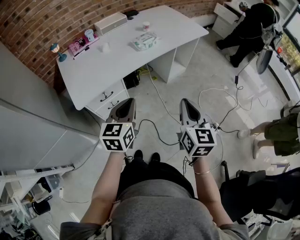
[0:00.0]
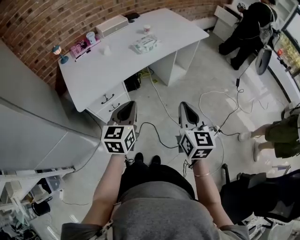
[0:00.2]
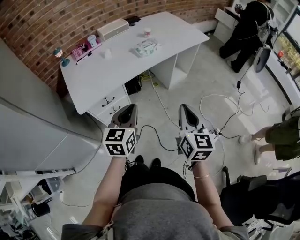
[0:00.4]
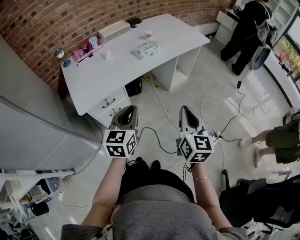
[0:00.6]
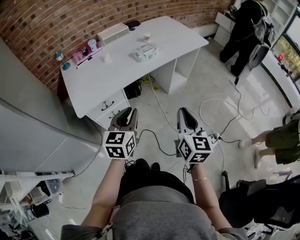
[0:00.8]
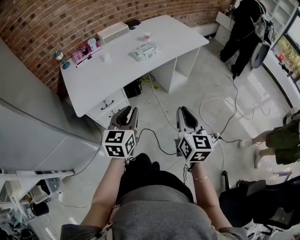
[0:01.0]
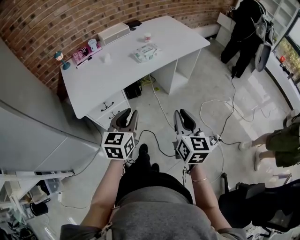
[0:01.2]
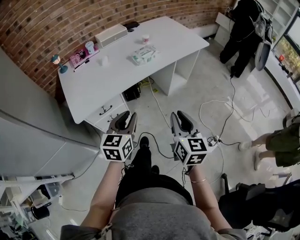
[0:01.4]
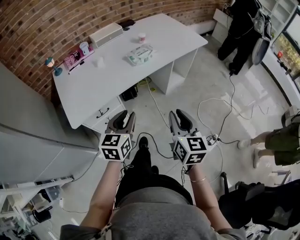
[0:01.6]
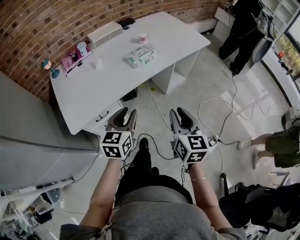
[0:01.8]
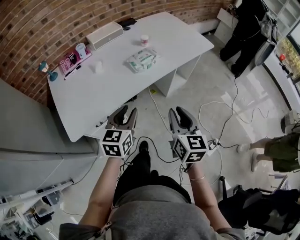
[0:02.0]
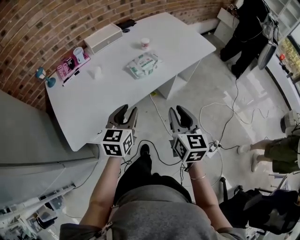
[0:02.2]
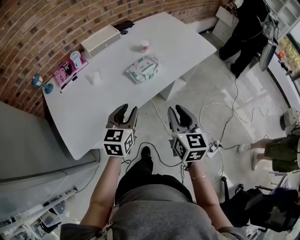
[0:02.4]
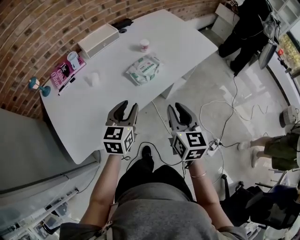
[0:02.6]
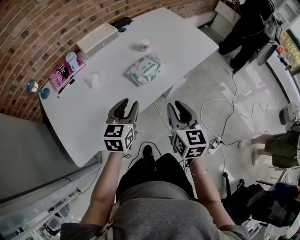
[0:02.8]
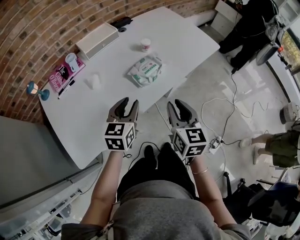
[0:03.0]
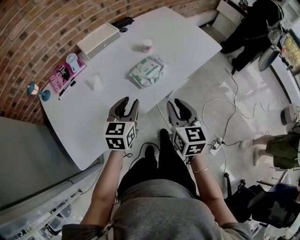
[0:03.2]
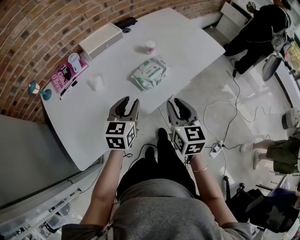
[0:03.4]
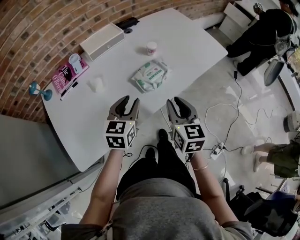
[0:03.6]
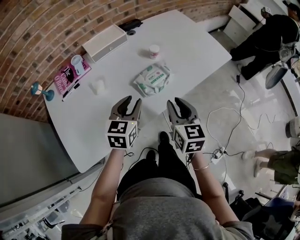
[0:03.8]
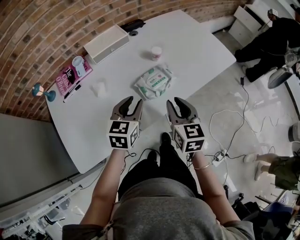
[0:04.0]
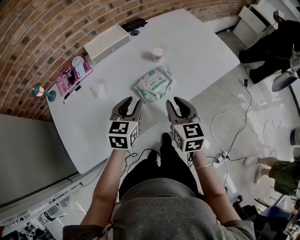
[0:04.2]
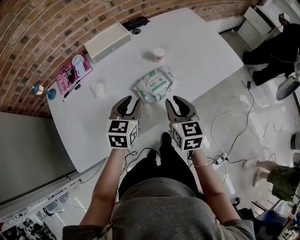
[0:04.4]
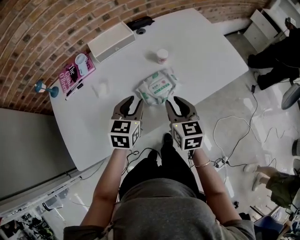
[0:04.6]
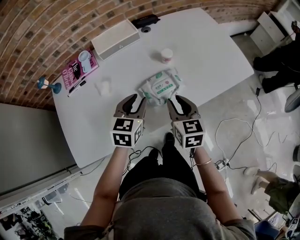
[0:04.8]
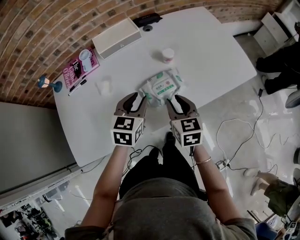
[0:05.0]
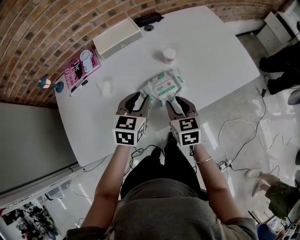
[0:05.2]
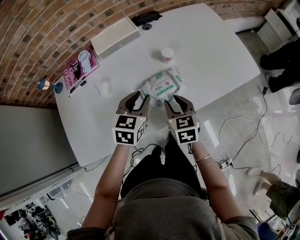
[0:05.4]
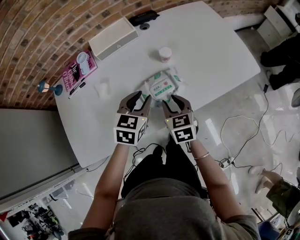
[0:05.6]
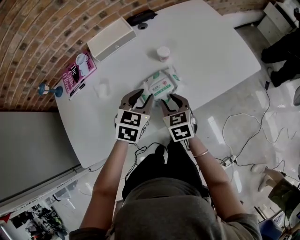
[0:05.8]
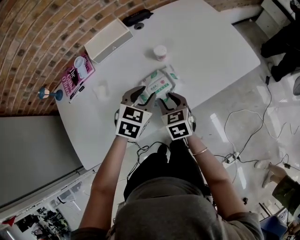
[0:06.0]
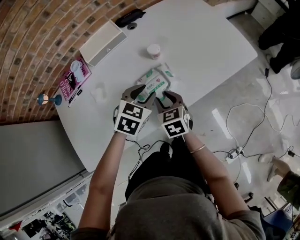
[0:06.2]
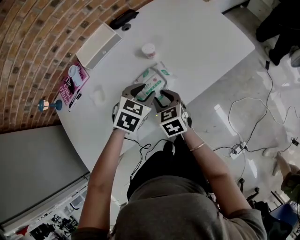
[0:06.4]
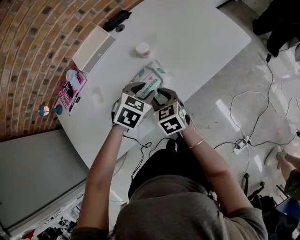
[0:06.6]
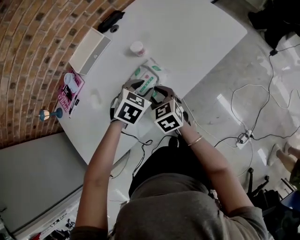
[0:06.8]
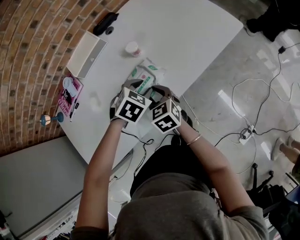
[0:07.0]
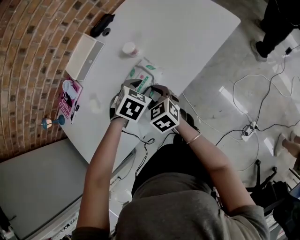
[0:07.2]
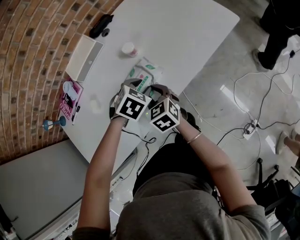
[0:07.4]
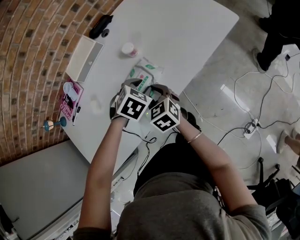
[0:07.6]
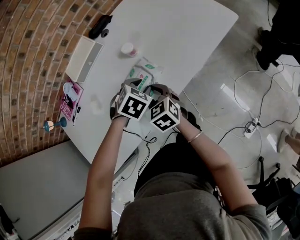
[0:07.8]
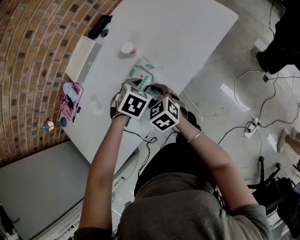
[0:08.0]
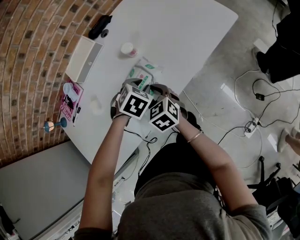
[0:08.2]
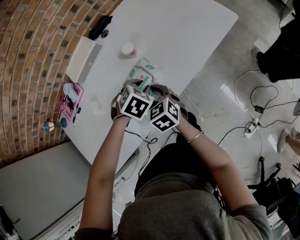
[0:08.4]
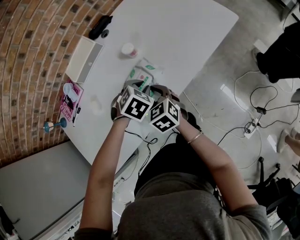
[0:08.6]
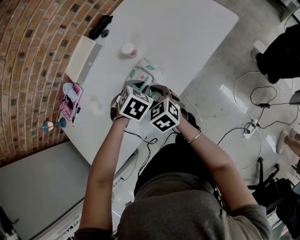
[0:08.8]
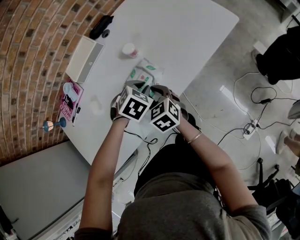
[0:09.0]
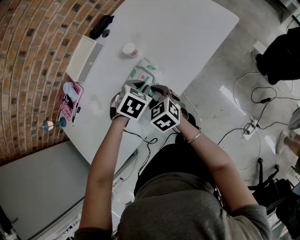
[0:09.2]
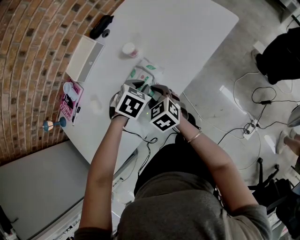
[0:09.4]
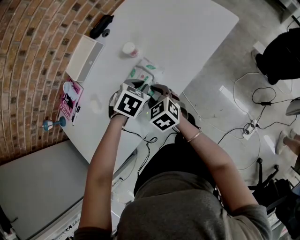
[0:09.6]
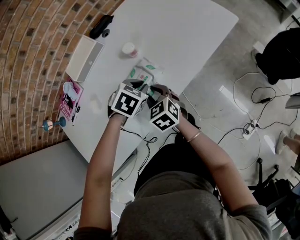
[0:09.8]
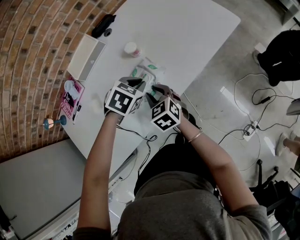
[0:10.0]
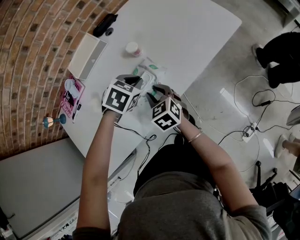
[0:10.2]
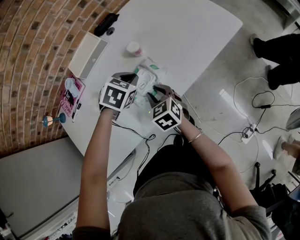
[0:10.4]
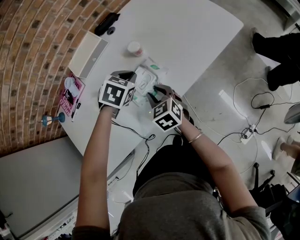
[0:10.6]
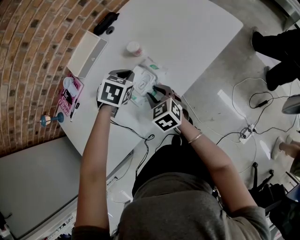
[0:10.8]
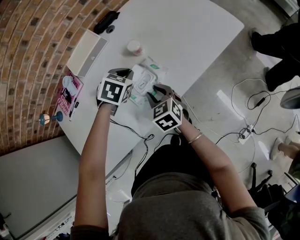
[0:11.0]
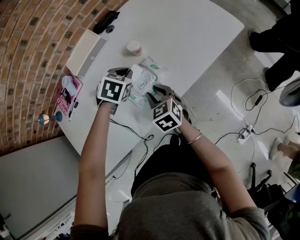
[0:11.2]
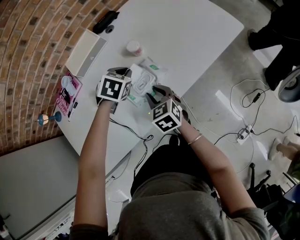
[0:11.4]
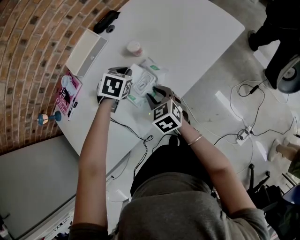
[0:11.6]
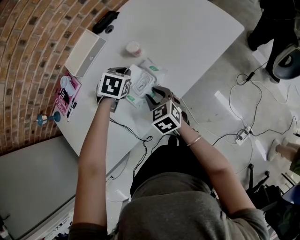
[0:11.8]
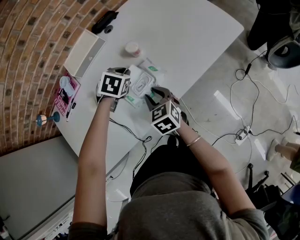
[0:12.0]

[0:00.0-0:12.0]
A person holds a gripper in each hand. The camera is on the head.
0:00.0 to 0:01.6: The grippers both shift forward by about 5 cm. The right gripper opens its fingers.
0:01.6 to 0:03.0: The grippers both shift forward by roughly 25 cm.
0:03.0 to 0:04.4: Both grippers move forward, some 10 cm.
0:04.4 to 0:06.0: The right gripper moves downward and forward, some 10 cm, while the left gripper heads to the right, covering approximately 5 cm, and rotates approximately 20 degrees.
0:06.0 to 0:07.6: The left gripper shifts some 10 cm downward and to the right, and changes its angle by roughly 30 degrees.
0:07.6 to 0:09.0: The left gripper closes its fingers.
0:09.0 to 0:10.4: The left gripper changes place by approximately 5 cm.
0:10.4 to 0:12.0: The left gripper heads forward, covering roughly 5 cm.

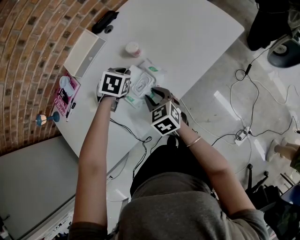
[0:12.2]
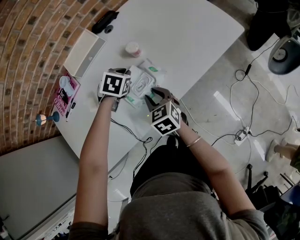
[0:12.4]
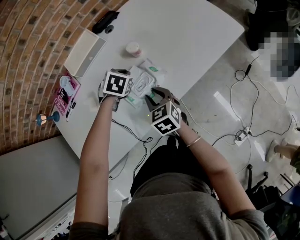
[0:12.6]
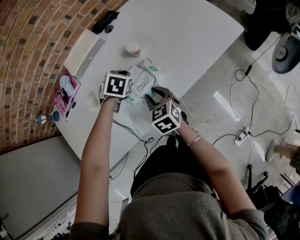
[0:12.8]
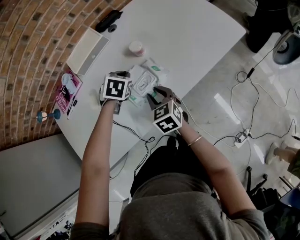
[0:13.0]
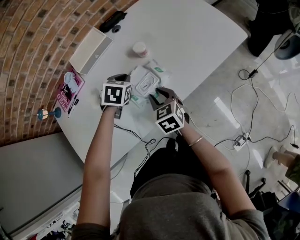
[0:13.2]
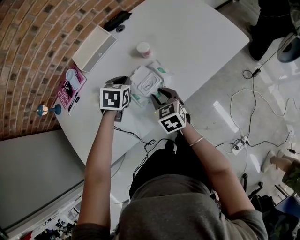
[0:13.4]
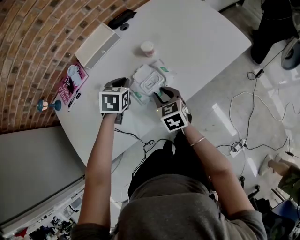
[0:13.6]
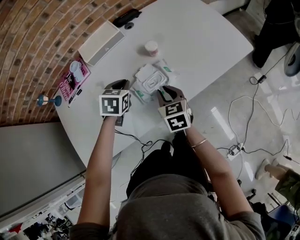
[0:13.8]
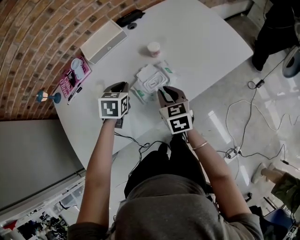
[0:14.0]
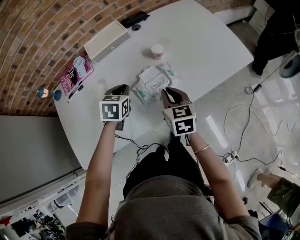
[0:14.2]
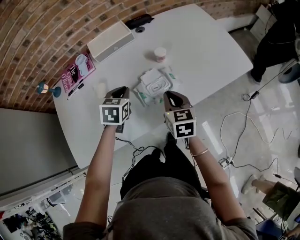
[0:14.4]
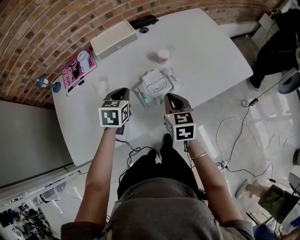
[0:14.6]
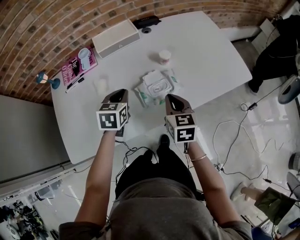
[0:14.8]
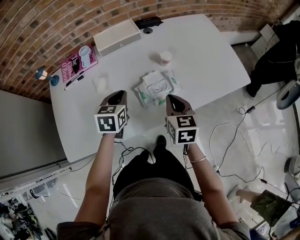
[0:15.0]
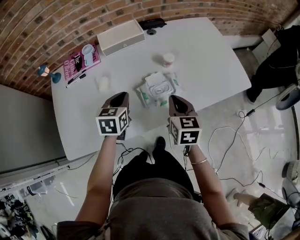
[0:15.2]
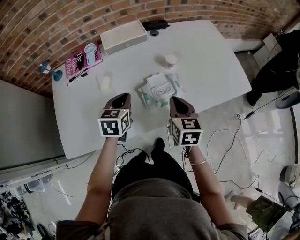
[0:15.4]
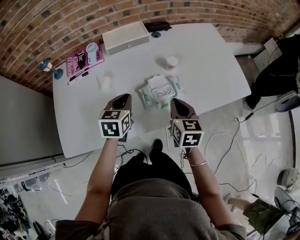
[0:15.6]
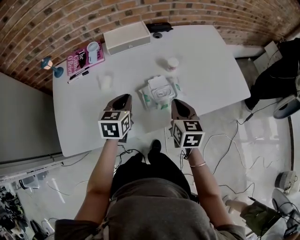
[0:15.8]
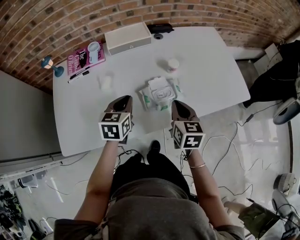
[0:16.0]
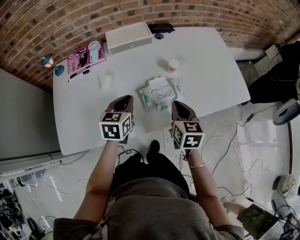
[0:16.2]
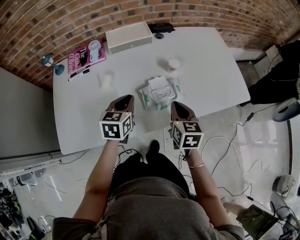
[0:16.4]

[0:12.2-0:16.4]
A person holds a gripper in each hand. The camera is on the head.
0:12.2 to 0:13.6: The left gripper heads to the left, covering approximately 5 cm.
0:13.6 to 0:15.0: The right gripper is displaced upward by some 10 cm, and closes its fingers. Meanwhile the left gripper travels backward and to the left by about 10 cm, and swivels some 30 degrees.
0:15.0 to 0:16.4: The grippers stay close to where they were, moving slightly.

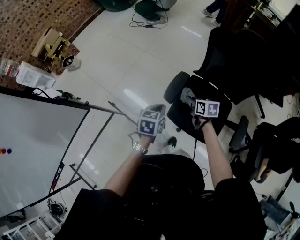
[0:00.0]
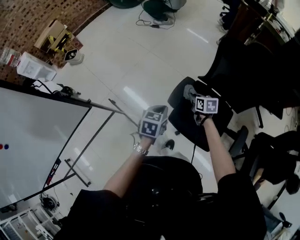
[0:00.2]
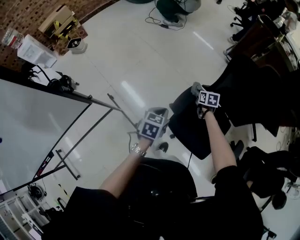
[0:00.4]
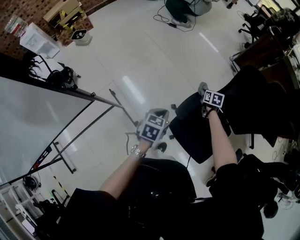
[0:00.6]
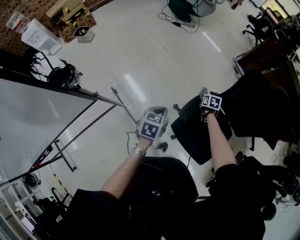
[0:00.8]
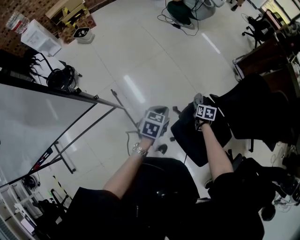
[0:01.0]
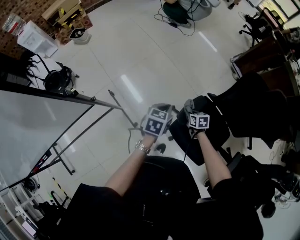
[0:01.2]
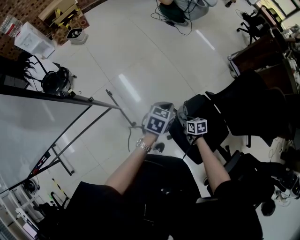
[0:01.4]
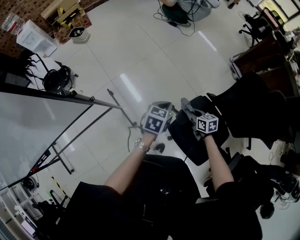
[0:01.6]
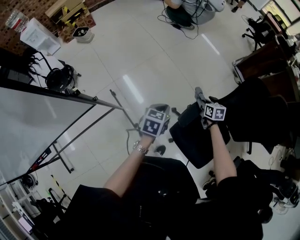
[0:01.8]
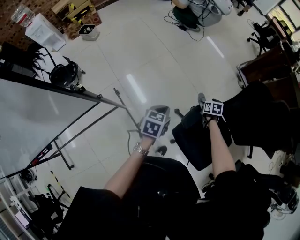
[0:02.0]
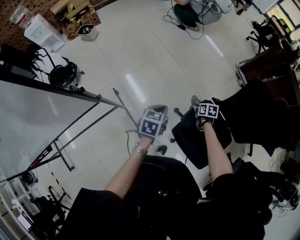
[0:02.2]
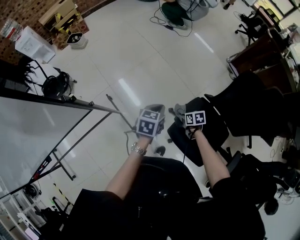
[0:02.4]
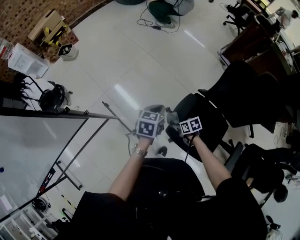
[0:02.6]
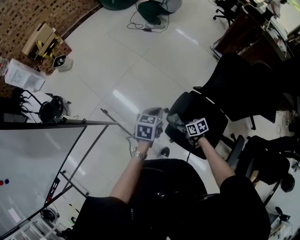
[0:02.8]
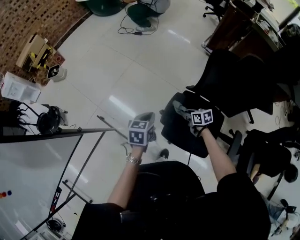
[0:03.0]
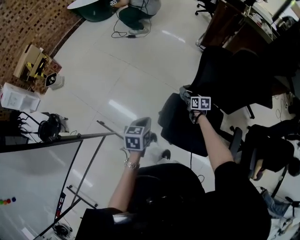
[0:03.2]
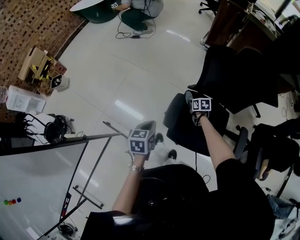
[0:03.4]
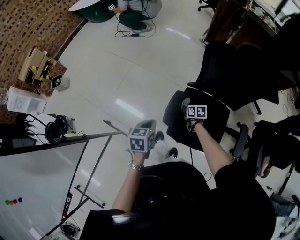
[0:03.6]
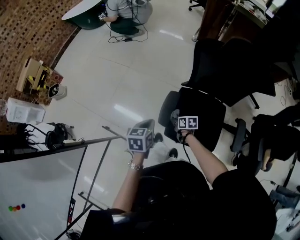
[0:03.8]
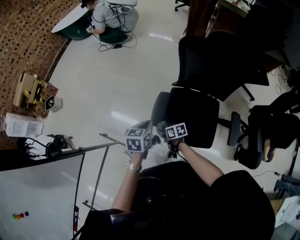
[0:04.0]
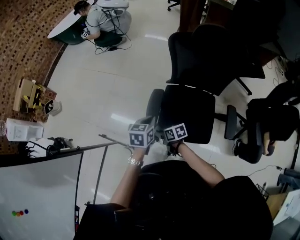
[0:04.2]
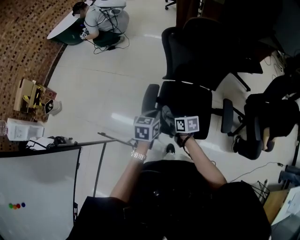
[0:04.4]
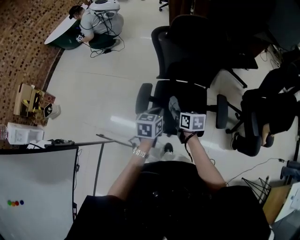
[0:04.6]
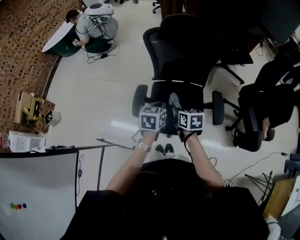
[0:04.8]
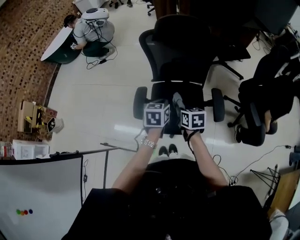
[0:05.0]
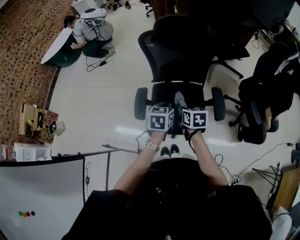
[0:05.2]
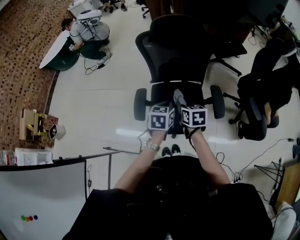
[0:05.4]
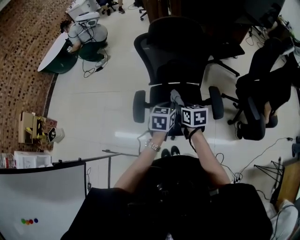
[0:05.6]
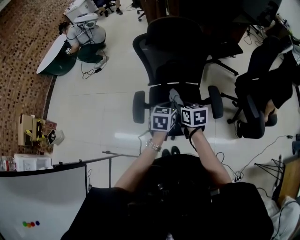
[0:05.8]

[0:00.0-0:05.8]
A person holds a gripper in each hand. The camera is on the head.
0:00.0 to 0:01.4: The right gripper is displaced downward and to the left by approximately 15 cm, goes forward and returns, about 20 cm each way, and swivels approximately 20 degrees. Meanwhile the left gripper goes roughly 15 cm forward and to the left.
0:01.4 to 0:02.8: The left gripper moves about 5 cm to the left and comes back. Meanwhile the right gripper goes forward and returns, approximately 15 cm each way.
0:02.8 to 0:04.4: The right gripper swings up and down, some 15 cm each way, with 2 reversals, and turns by roughly 40 degrees. The left gripper ends up roughly 20 cm from where it was.
0:04.4 to 0:05.8: The left gripper travels to the right by some 15 cm, while the right gripper moves to the right and upward, some 15 cm, and rotates some 30 degrees.

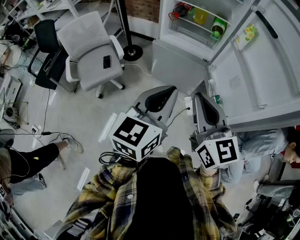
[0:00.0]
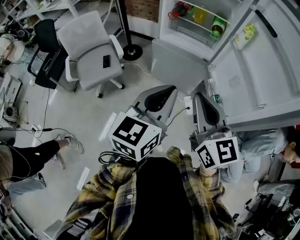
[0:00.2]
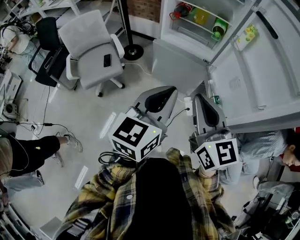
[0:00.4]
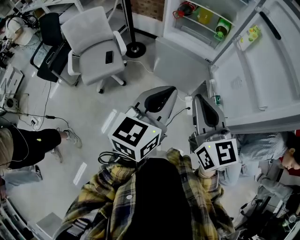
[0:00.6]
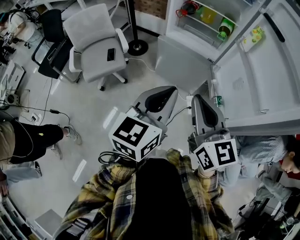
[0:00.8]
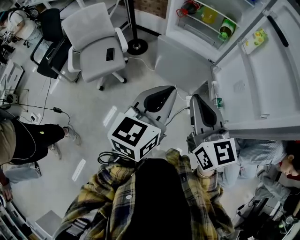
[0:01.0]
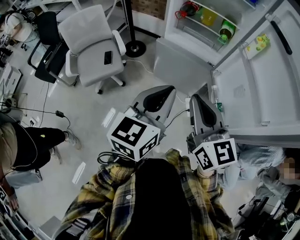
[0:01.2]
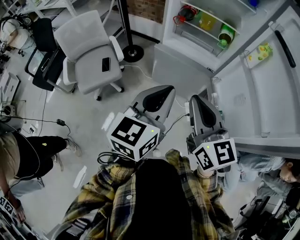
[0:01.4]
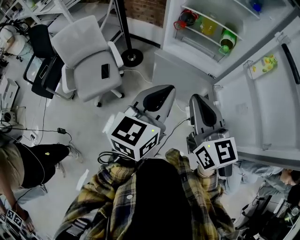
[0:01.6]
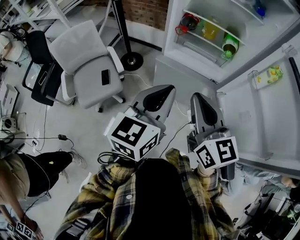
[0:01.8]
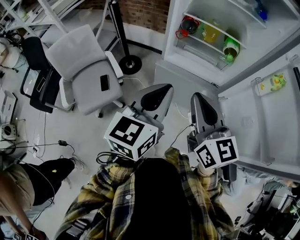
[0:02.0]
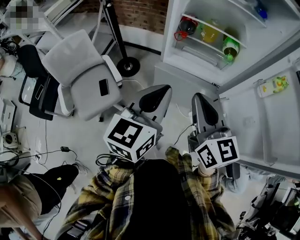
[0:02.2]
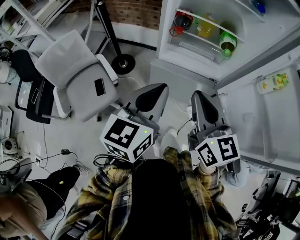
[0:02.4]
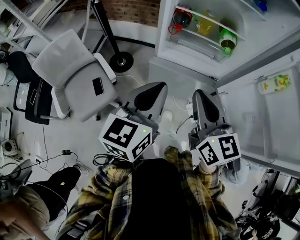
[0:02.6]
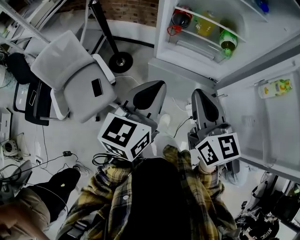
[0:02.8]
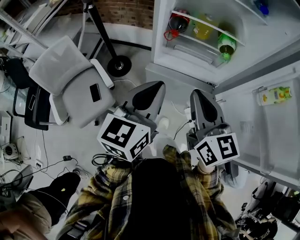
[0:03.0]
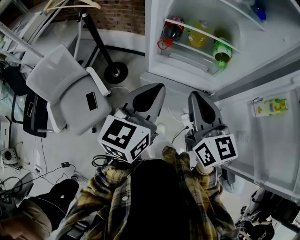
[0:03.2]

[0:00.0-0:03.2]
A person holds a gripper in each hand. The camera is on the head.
0:00.0 to 0:01.6: Both grippers move forward, some 15 cm.
0:01.6 to 0:03.2: Both grippers move forward, some 20 cm.
